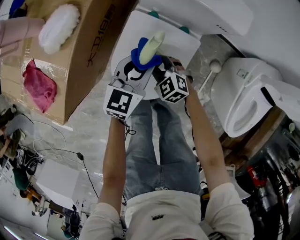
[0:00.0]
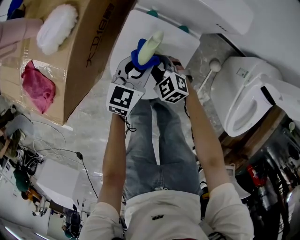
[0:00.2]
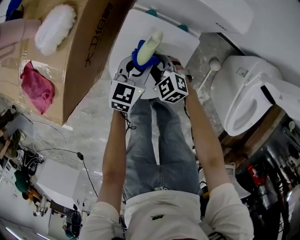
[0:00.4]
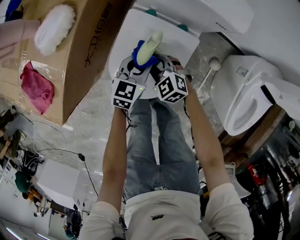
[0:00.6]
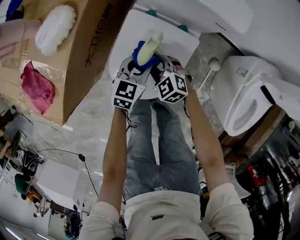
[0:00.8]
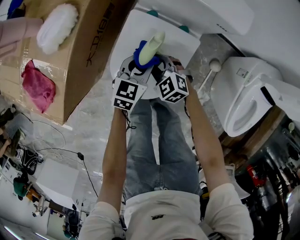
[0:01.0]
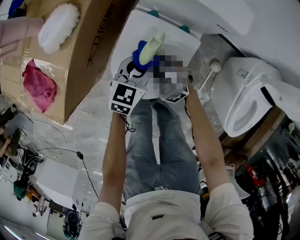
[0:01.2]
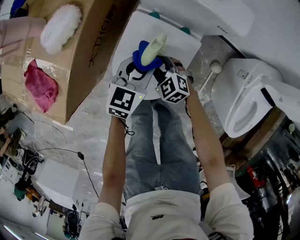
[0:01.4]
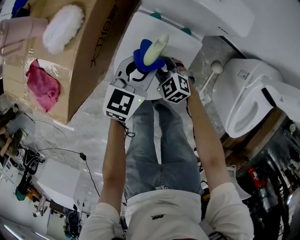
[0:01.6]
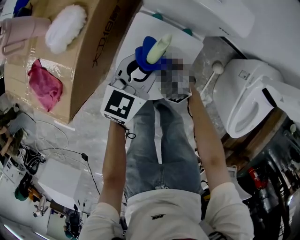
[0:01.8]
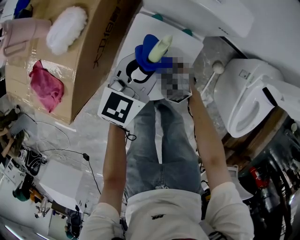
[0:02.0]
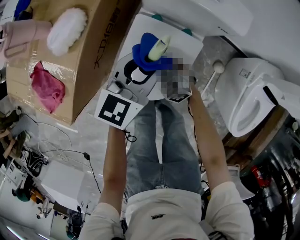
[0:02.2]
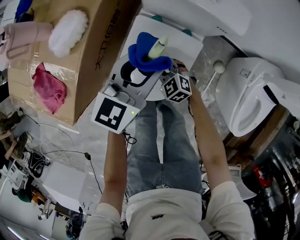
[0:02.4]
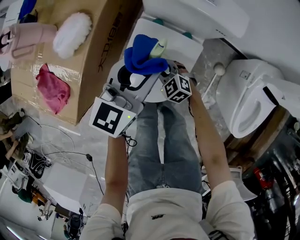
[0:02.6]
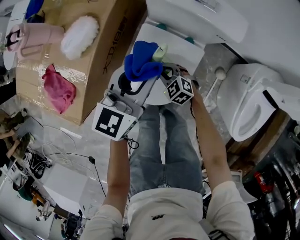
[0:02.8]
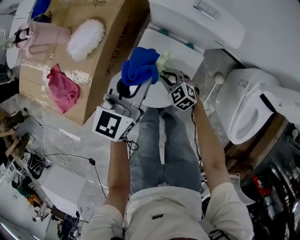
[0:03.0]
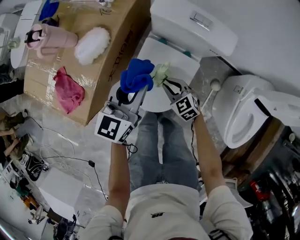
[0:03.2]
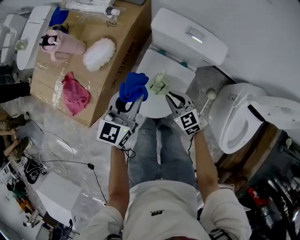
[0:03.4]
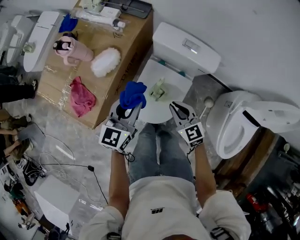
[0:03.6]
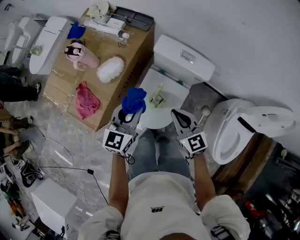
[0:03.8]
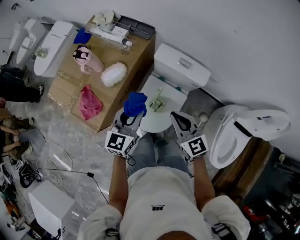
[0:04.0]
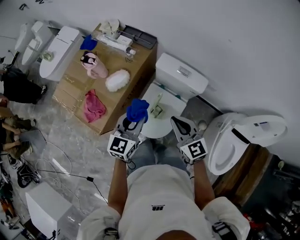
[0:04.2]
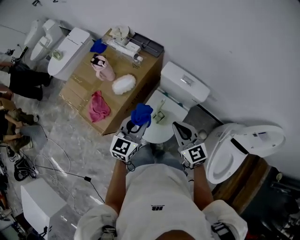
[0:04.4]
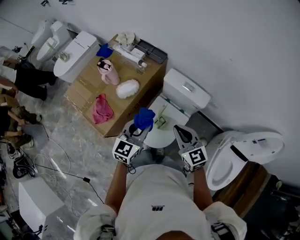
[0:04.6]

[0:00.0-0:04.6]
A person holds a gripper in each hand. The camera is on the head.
0:00.0 to 0:01.6: The left gripper travels downward and back again, roughly 10 cm each way.
0:01.6 to 0:03.0: The left gripper heads upward, covering about 15 cm.
0:03.0 to 0:04.6: The right gripper is displaced upward by approximately 50 cm, and angles its fingers upward, by approximately 30 degrees. The left gripper travels upward and backward by some 25 cm.

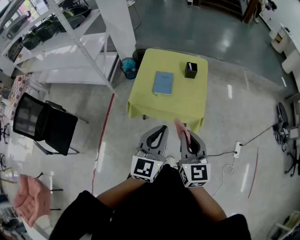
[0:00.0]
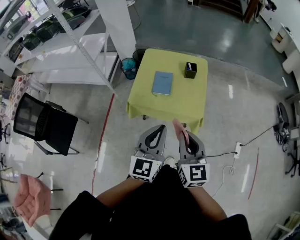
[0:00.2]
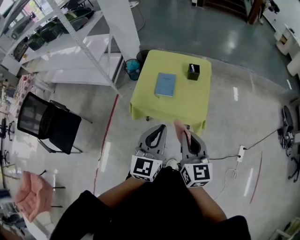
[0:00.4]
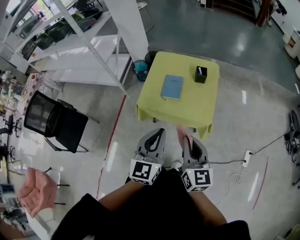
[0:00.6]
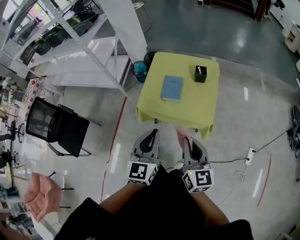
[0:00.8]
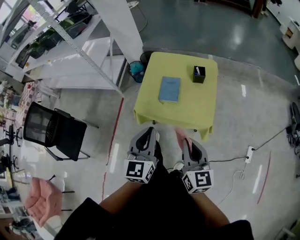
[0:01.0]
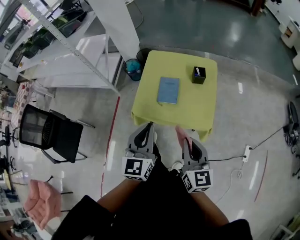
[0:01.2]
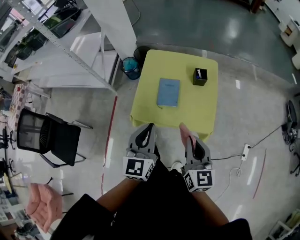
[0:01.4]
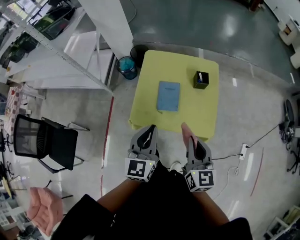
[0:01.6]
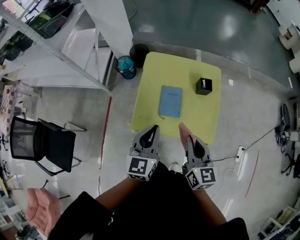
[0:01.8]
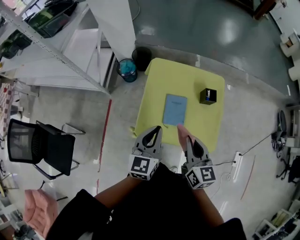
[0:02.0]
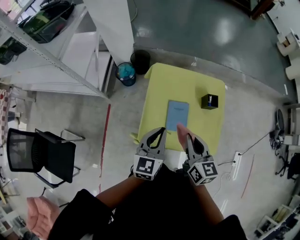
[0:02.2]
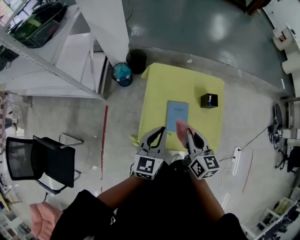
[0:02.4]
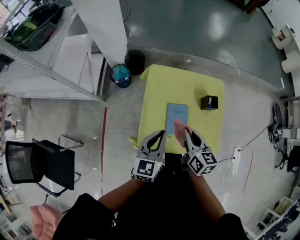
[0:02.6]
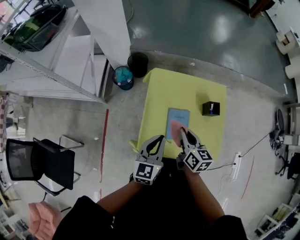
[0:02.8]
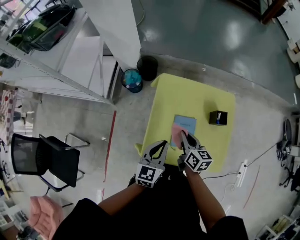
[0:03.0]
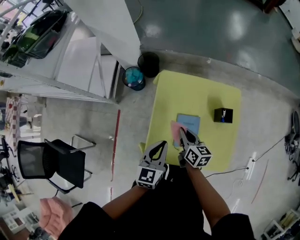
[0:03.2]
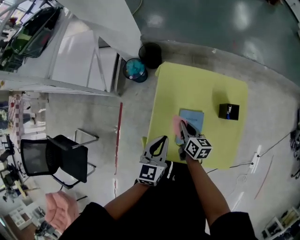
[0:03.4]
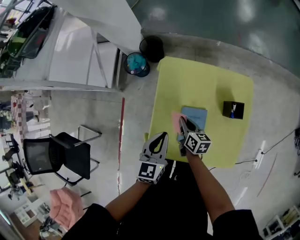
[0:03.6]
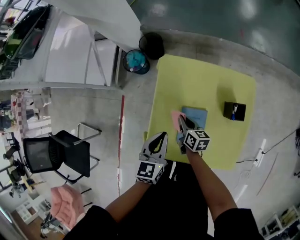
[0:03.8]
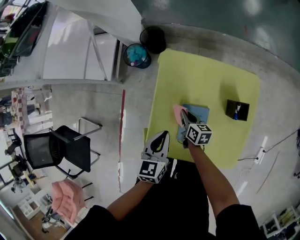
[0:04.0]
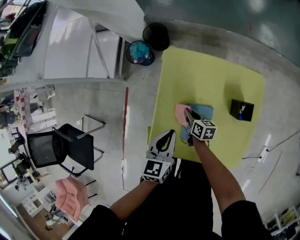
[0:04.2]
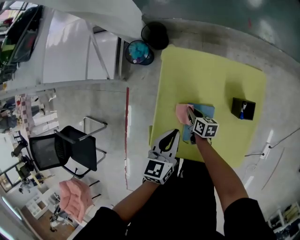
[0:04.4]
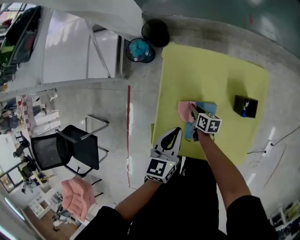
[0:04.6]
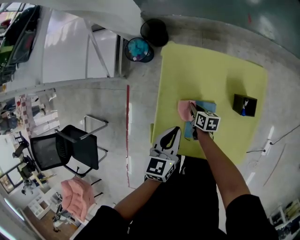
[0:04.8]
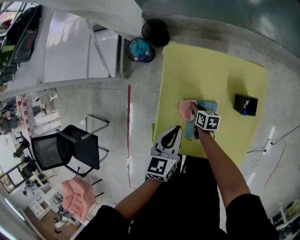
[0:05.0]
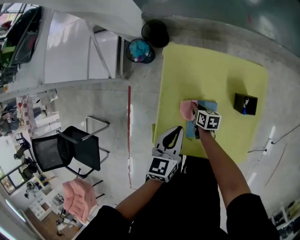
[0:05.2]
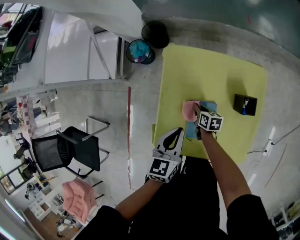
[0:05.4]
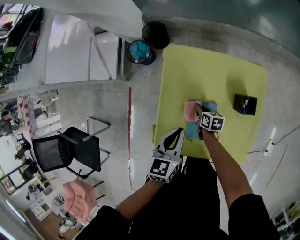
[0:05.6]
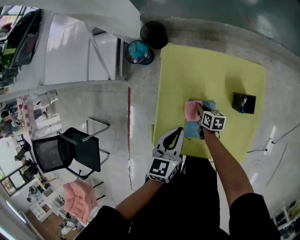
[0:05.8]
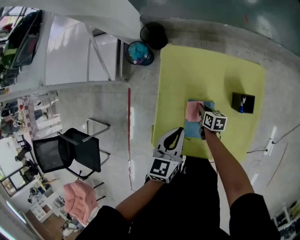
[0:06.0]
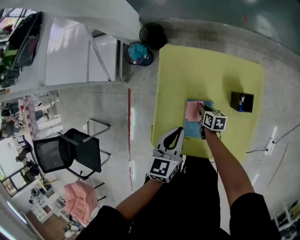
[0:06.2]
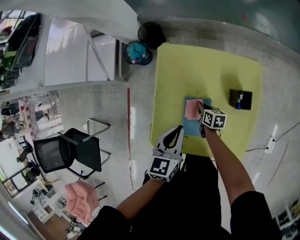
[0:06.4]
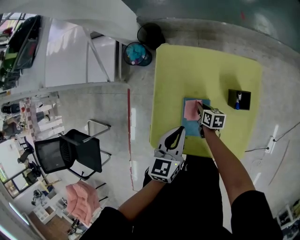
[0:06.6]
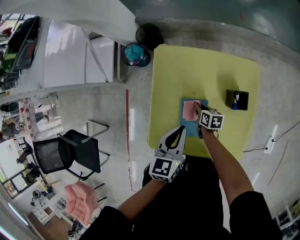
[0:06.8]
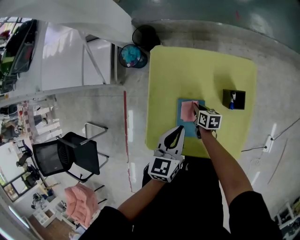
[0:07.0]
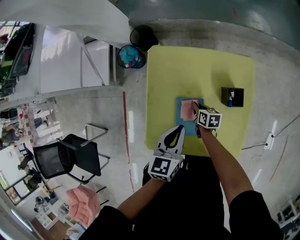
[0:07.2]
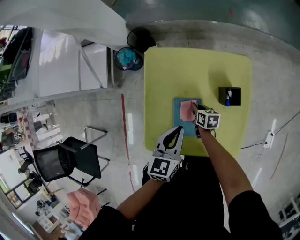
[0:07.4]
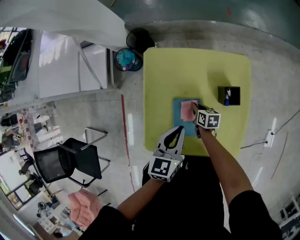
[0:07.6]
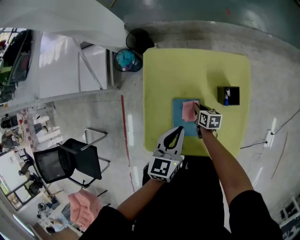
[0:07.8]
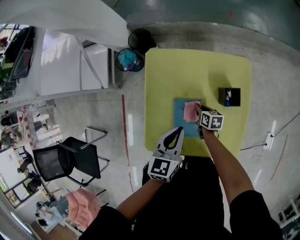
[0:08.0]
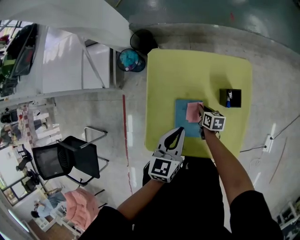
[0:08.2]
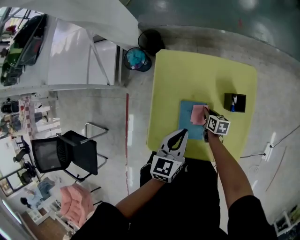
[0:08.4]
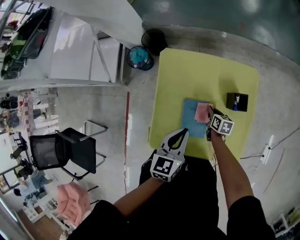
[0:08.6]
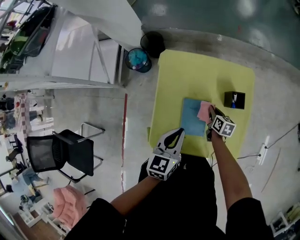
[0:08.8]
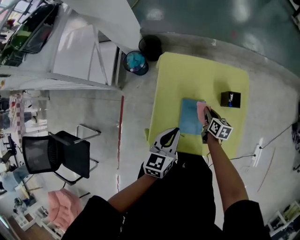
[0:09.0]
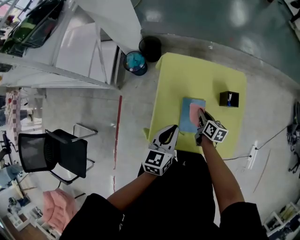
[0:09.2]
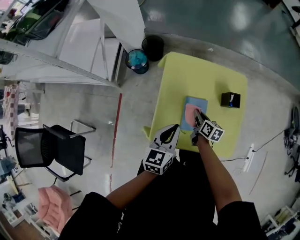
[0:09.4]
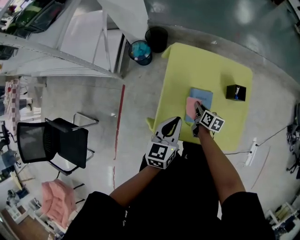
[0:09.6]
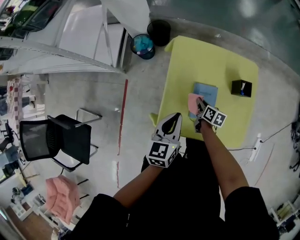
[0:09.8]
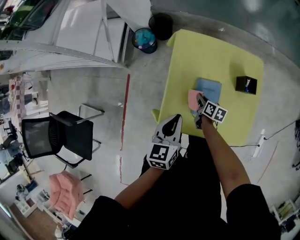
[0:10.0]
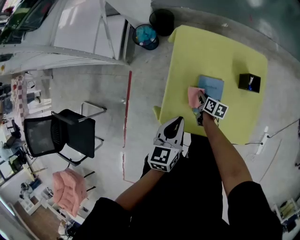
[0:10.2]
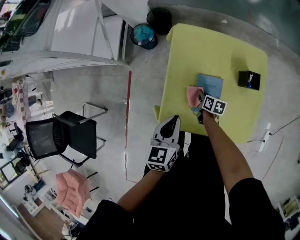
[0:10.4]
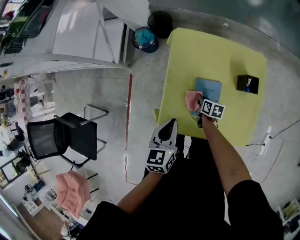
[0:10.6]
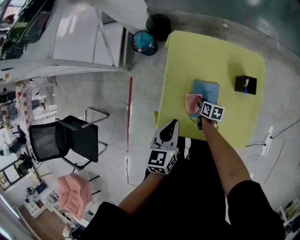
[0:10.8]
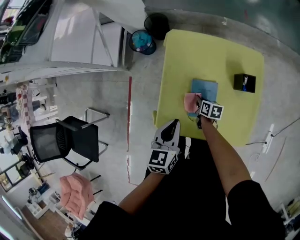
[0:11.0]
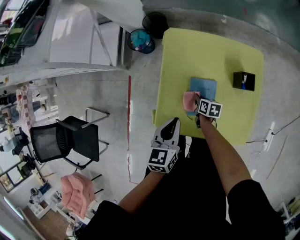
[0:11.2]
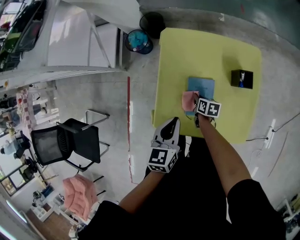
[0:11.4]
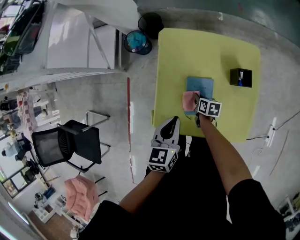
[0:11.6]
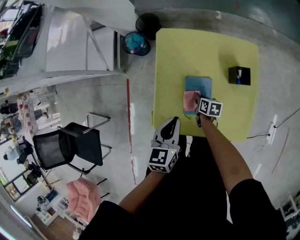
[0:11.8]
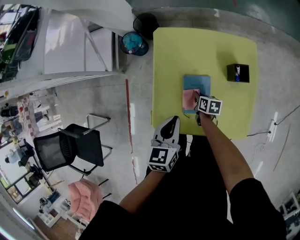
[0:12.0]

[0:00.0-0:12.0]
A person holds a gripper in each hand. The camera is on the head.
0:00.0 to 0:01.6: The grippers both shift forward by about 25 cm.
0:01.6 to 0:03.0: The left gripper heads forward, downward and to the left, covering about 25 cm, while the right gripper is displaced forward, to the left and downward by approximately 35 cm, and swivels about 30 degrees.
0:03.0 to 0:04.4: The right gripper travels downward by approximately 25 cm, and rotates about 20 degrees; the left gripper is displaced downward and forward by roughly 15 cm.
0:04.4 to 0:06.0: The right gripper is displaced to the right by roughly 5 cm.
0:06.0 to 0:07.6: The left gripper goes about 5 cm to the right. The right gripper moves some 5 cm.
0:07.6 to 0:09.0: The right gripper shifts some 10 cm upward; the left gripper goes roughly 10 cm to the left and backward.
0:09.0 to 0:10.4: The left gripper moves to the left, some 5 cm. Meanwhile the right gripper is displaced downward and to the left by some 15 cm.
0:10.4 to 0:12.0: The right gripper changes place by some 5 cm; the left gripper heads to the right, covering roughly 5 cm.

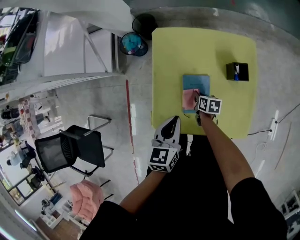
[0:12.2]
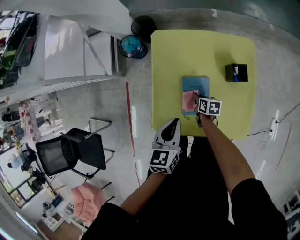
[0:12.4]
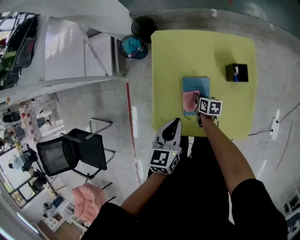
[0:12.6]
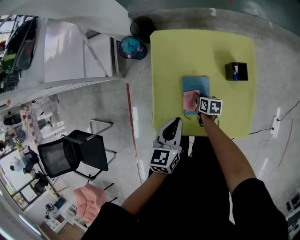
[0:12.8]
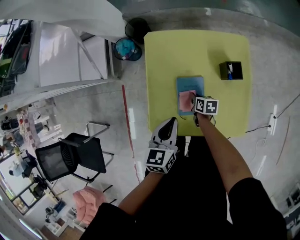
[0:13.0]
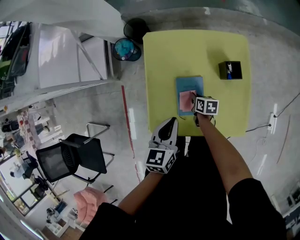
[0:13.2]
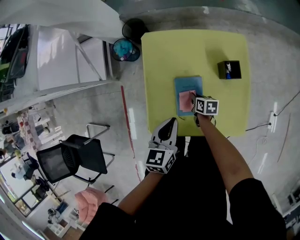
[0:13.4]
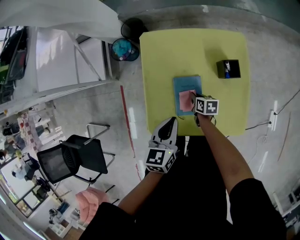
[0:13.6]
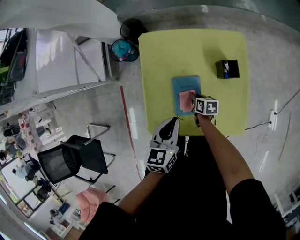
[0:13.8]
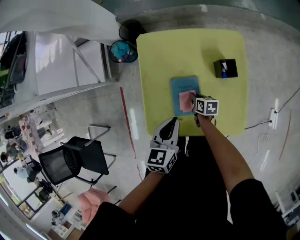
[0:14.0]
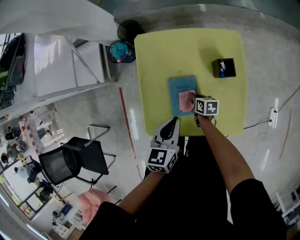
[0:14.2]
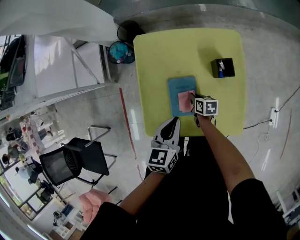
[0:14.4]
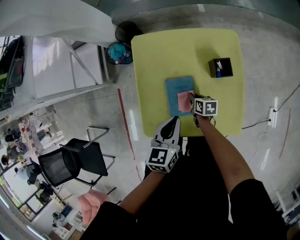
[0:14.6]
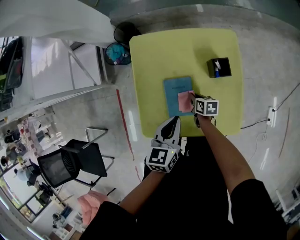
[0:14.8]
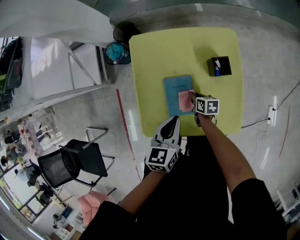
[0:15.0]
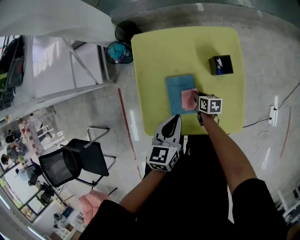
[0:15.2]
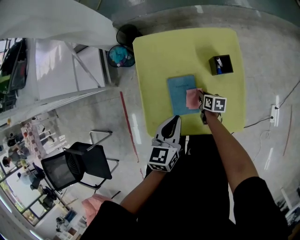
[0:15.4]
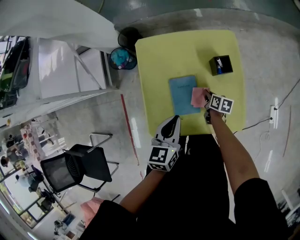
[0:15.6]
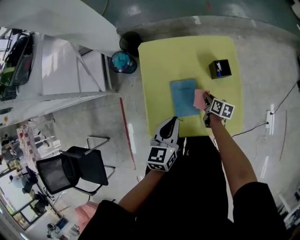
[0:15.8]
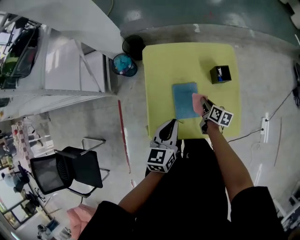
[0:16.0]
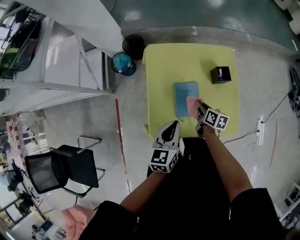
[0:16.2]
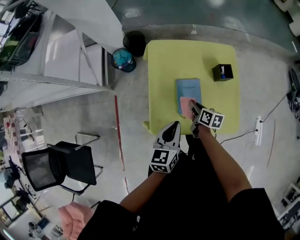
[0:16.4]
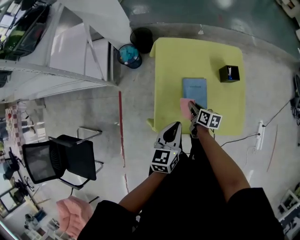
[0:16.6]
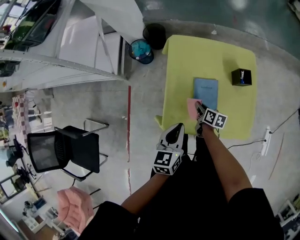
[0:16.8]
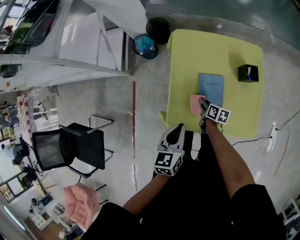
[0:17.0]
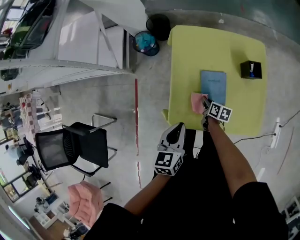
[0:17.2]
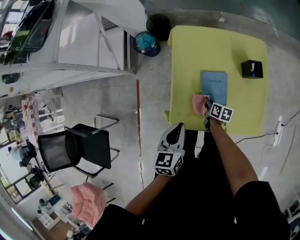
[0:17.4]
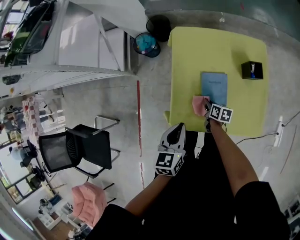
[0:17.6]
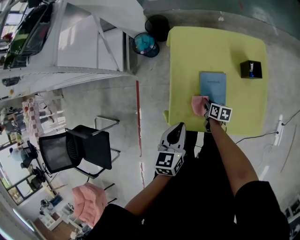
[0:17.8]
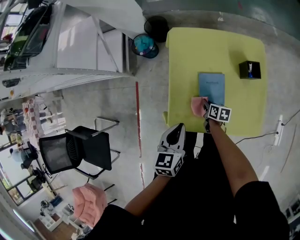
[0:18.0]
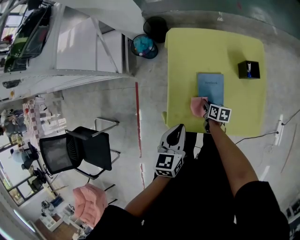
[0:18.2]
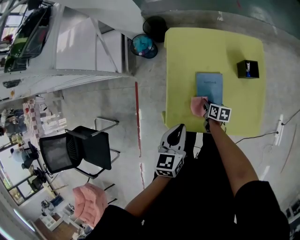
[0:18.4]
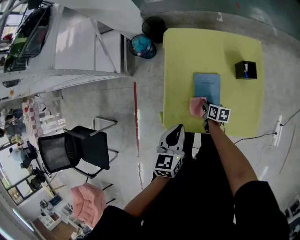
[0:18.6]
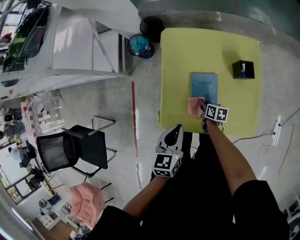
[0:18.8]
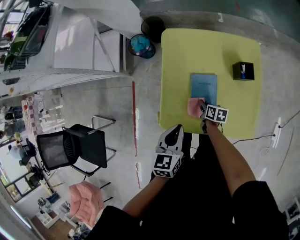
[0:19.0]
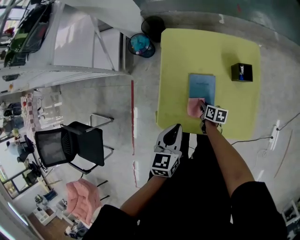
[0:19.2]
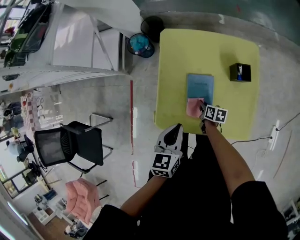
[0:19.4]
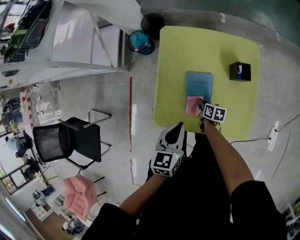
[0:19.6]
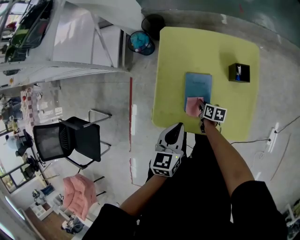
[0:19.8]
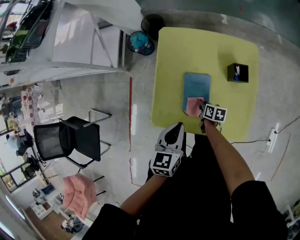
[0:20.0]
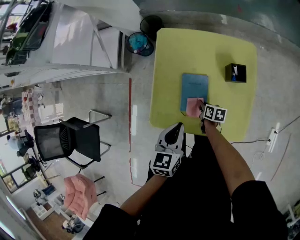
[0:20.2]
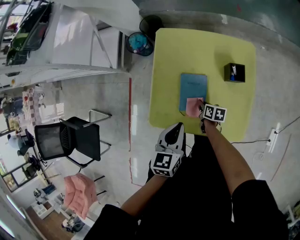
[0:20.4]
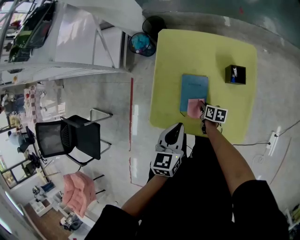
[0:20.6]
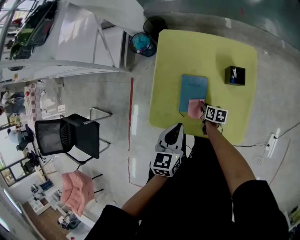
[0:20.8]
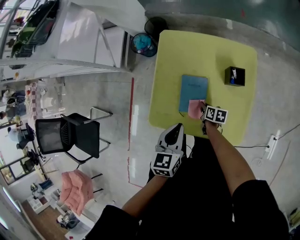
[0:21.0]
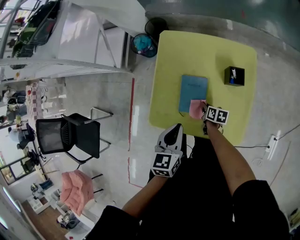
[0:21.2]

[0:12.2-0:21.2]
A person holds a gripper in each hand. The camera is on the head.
0:12.2 to 0:13.8: The grippers stay close to where they were, moving slightly.
0:13.8 to 0:15.2: The grippers stay close to where they were, moving slightly.
0:15.2 to 0:16.6: The right gripper moves to the left, upward and backward, about 20 cm; the left gripper shifts about 15 cm to the left and backward.
0:16.6 to 0:18.2: The right gripper shifts roughly 10 cm downward.
0:18.2 to 0:19.8: The grippers both shift to the right by about 5 cm.
0:19.8 to 0:21.2: The right gripper moves to the right, about 5 cm.
